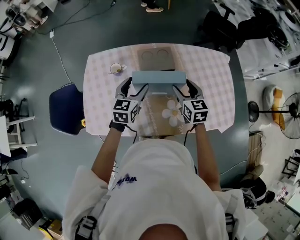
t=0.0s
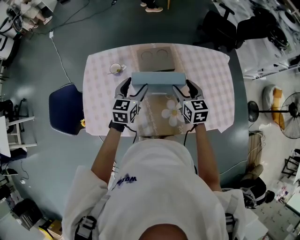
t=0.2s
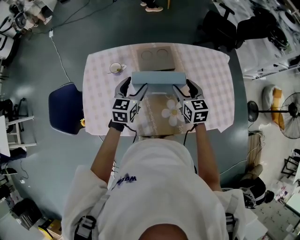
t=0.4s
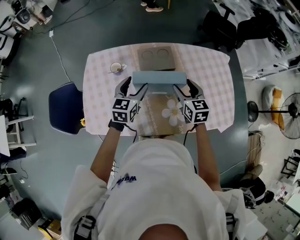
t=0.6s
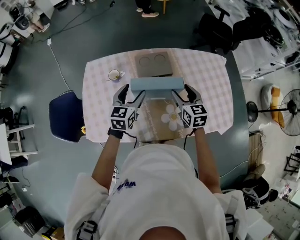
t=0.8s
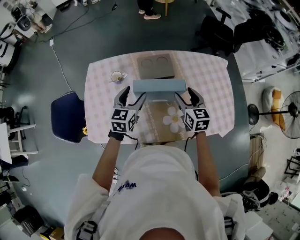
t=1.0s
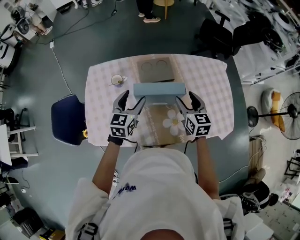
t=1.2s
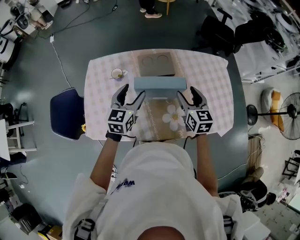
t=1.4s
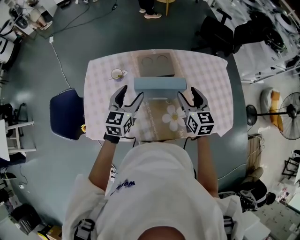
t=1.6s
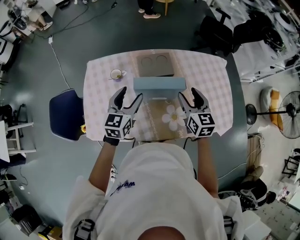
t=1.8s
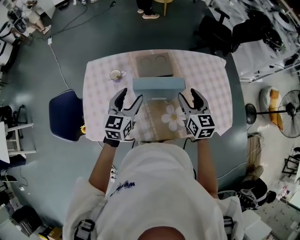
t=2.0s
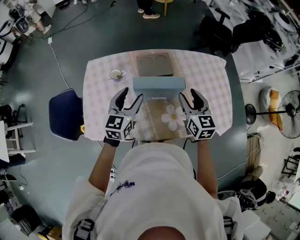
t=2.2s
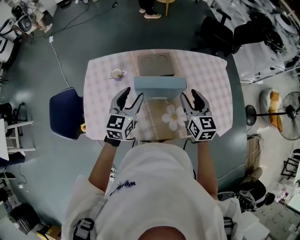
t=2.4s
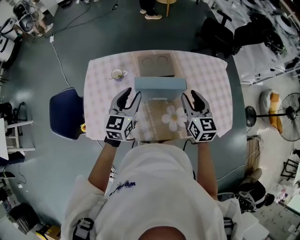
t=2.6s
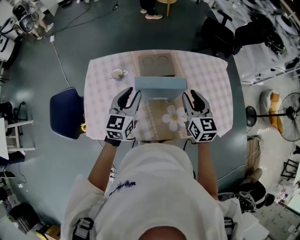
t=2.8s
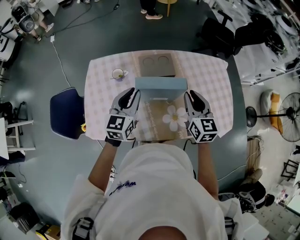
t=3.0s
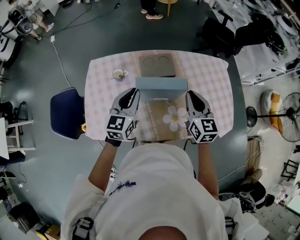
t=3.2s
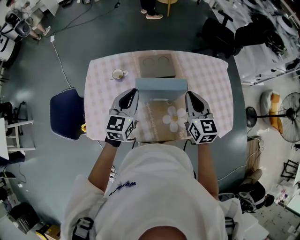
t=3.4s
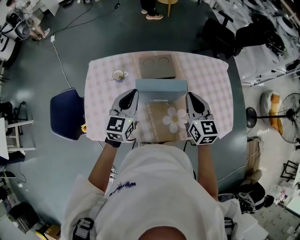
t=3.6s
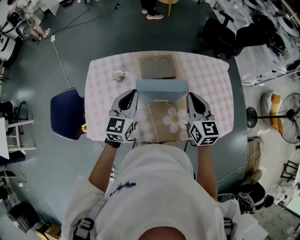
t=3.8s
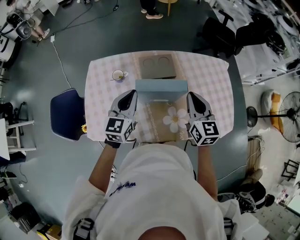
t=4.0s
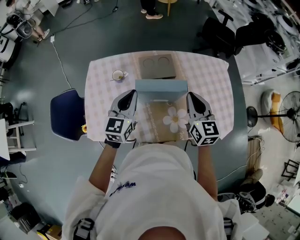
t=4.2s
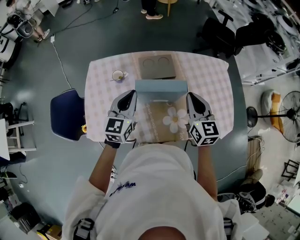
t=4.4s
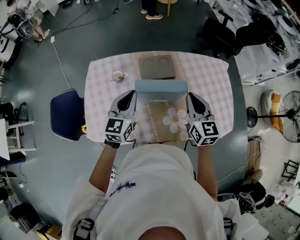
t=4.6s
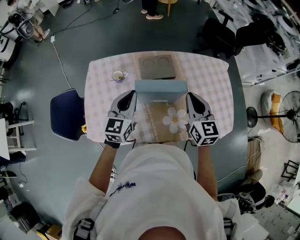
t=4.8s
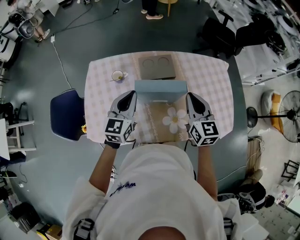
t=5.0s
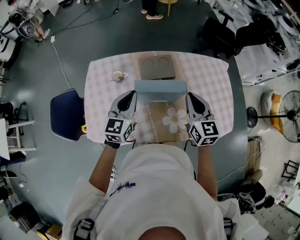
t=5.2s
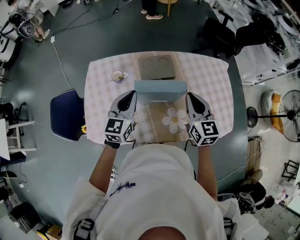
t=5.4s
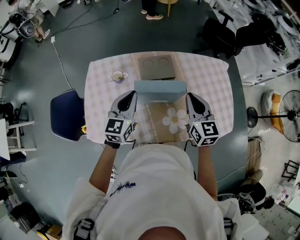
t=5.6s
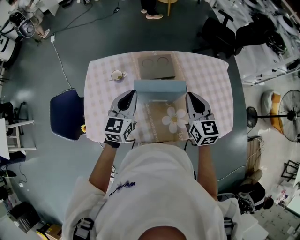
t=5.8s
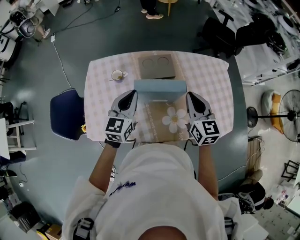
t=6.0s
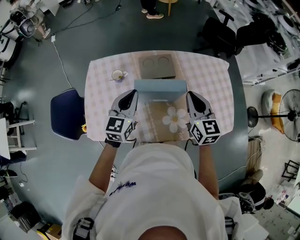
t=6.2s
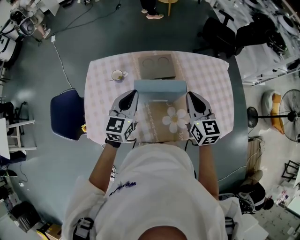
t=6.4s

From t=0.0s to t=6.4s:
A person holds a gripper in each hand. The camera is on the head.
From t=0.0s to t=1.6s: The right gripper shifts by about 5 cm; the left gripper shifts by approximately 5 cm.
From t=1.6s to t=3.2s: The left gripper closes up, while the right gripper closes up.
From t=3.2s to t=6.4s: Neither gripper changes place.

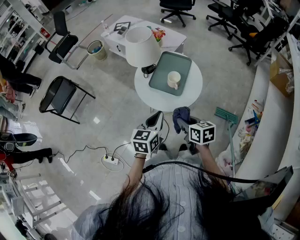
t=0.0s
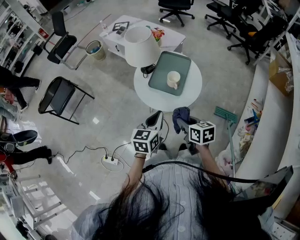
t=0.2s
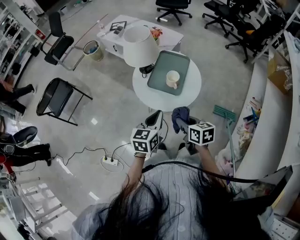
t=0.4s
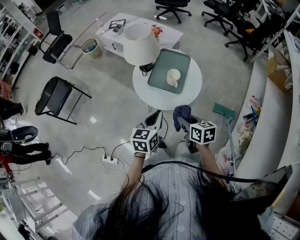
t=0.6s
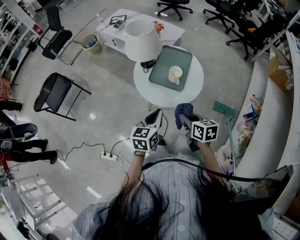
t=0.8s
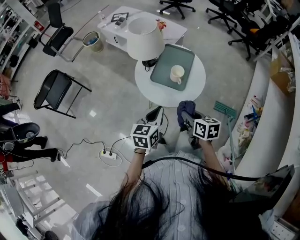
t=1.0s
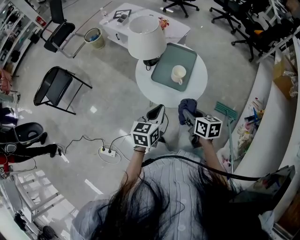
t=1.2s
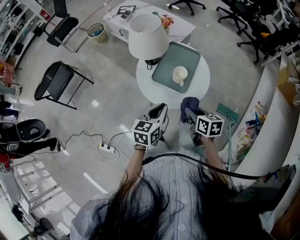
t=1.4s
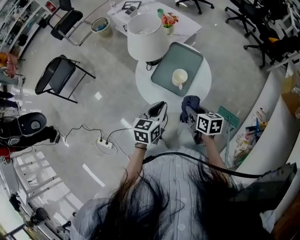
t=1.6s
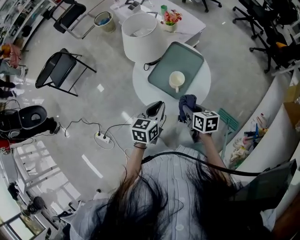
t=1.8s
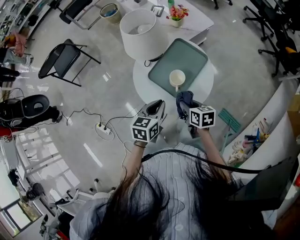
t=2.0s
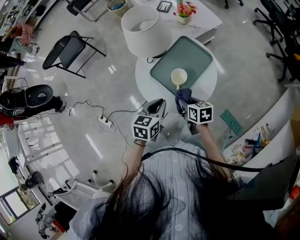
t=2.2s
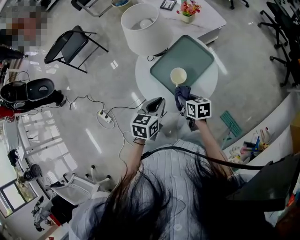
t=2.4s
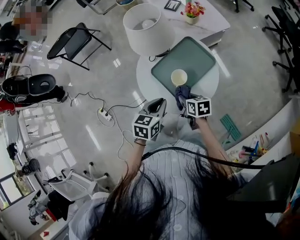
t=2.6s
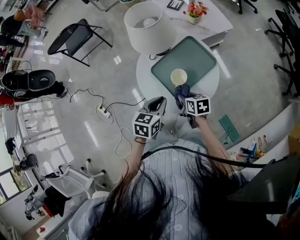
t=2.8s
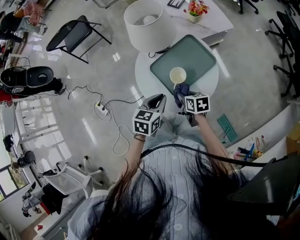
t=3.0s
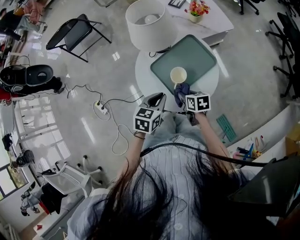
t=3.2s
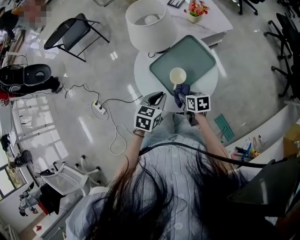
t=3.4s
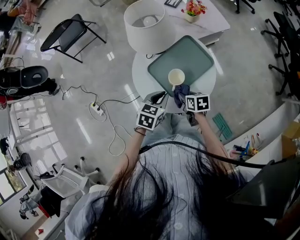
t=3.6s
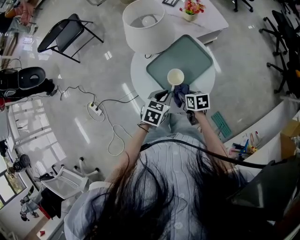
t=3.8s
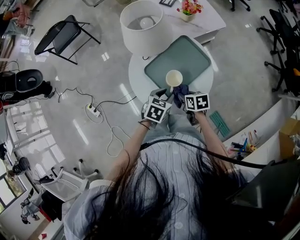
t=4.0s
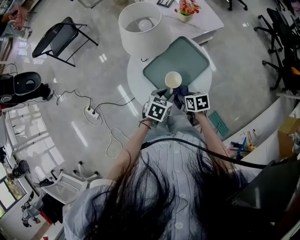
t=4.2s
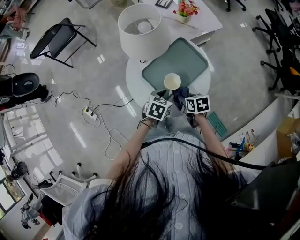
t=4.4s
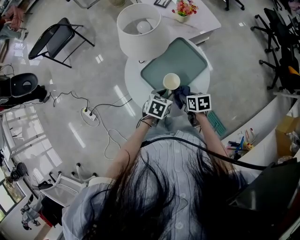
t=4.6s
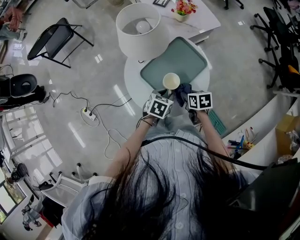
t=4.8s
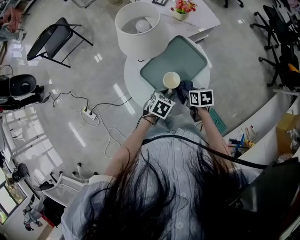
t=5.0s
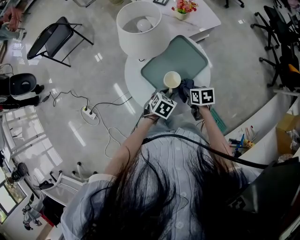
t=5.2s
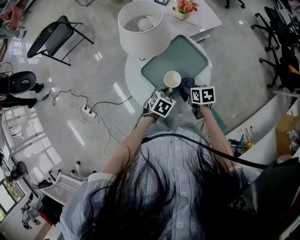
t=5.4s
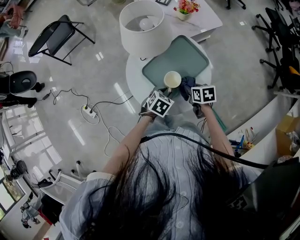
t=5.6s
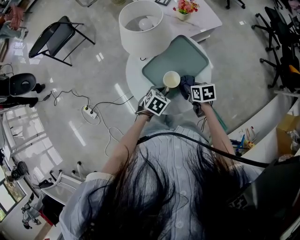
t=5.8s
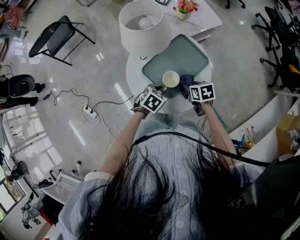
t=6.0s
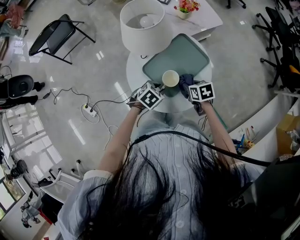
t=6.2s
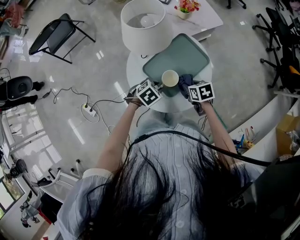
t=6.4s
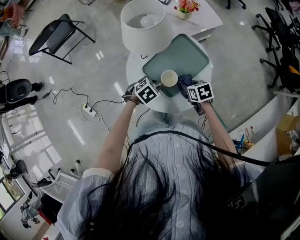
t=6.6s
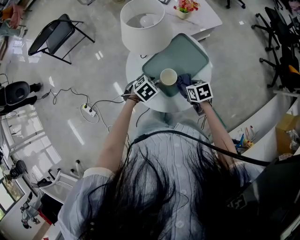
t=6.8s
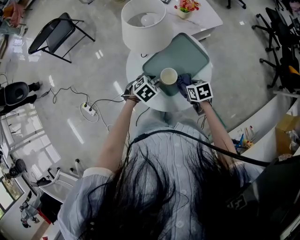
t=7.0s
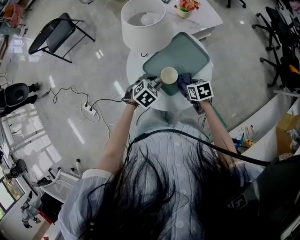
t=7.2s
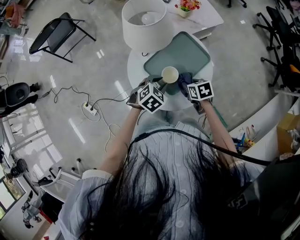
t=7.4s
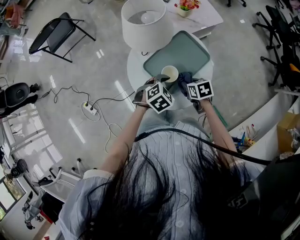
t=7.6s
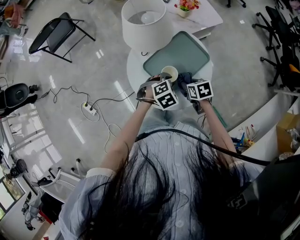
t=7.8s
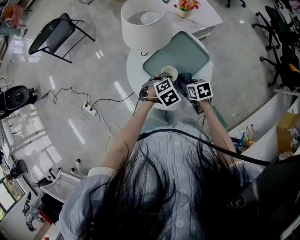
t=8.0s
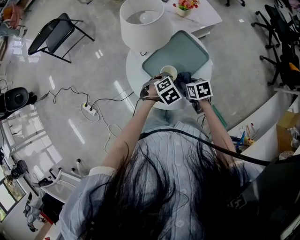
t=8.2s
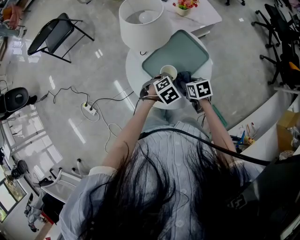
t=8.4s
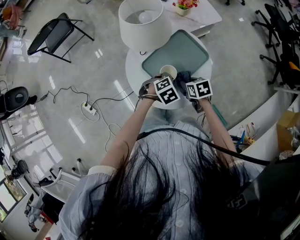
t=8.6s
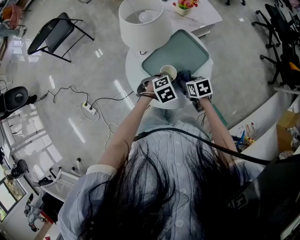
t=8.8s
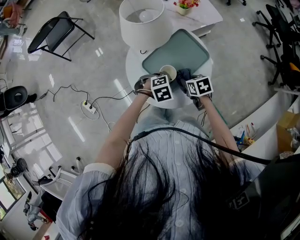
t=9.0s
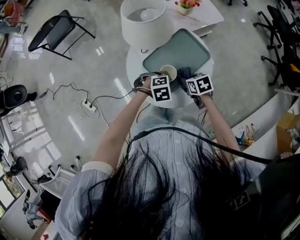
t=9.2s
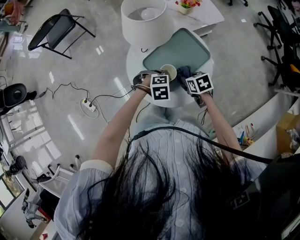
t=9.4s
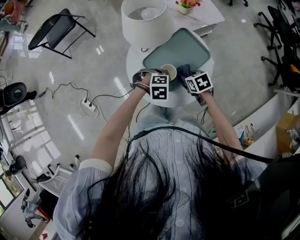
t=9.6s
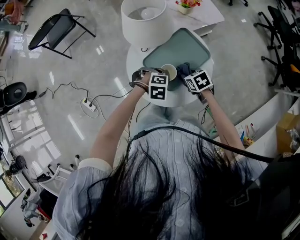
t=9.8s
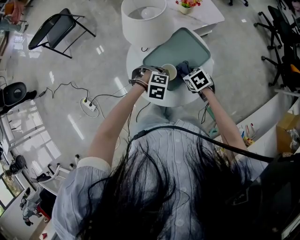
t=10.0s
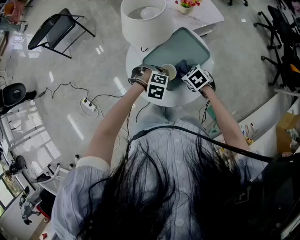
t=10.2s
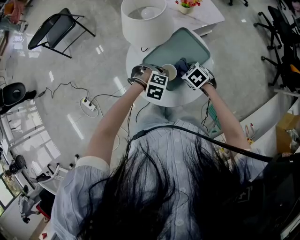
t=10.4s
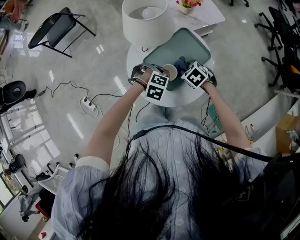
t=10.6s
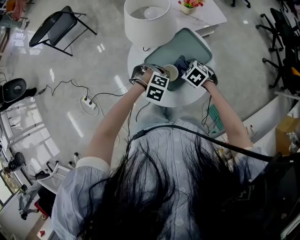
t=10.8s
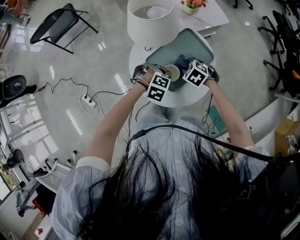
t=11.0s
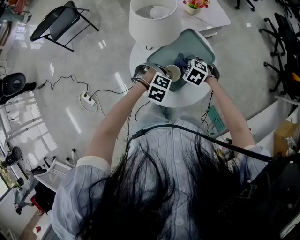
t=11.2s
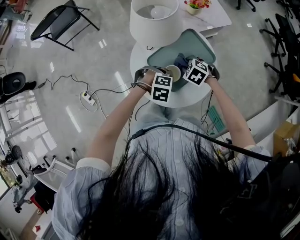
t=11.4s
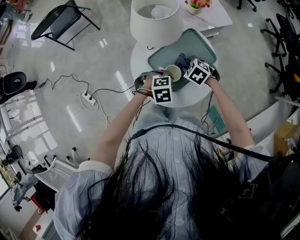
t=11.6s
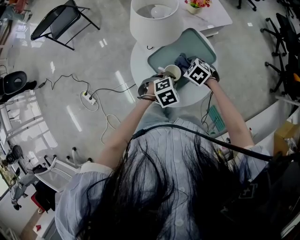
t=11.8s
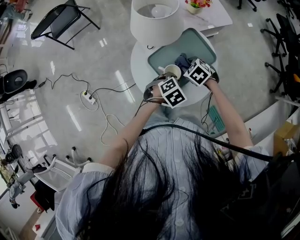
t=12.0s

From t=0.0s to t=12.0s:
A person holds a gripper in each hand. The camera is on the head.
From t=0.0s to t=1.6s: The left gripper goes some 10 cm forward; the right gripper heads forward and to the right, covering some 10 cm.
From t=1.6s to t=3.0s: The left gripper changes place by about 10 cm, and changes its angle by about 20 degrees. The right gripper moves downward, roughly 10 cm, and swivels approximately 30 degrees.
From t=3.0s to t=4.4s: The left gripper shifts approximately 10 cm downward and to the right, and opens up.
From t=4.4s to t=6.0s: The right gripper changes place by some 5 cm.
From t=6.0s to t=7.6s: The left gripper travels upward by roughly 5 cm, and turns by some 20 degrees.
From t=7.6s to t=9.0s: The left gripper turns by some 20 degrees.
From t=9.0s to t=10.4s: The right gripper swivels approximately 30 degrees; the left gripper turns by approximately 30 degrees.
From t=10.4s to t=12.0s: The left gripper twists roughly 50 degrees counterclockwise, seen from behind.

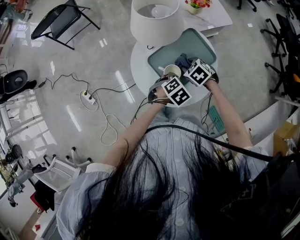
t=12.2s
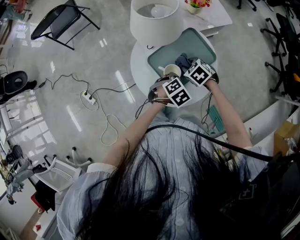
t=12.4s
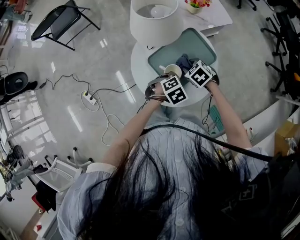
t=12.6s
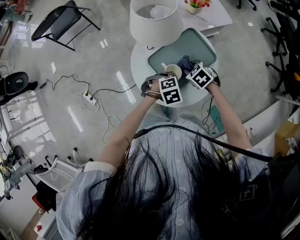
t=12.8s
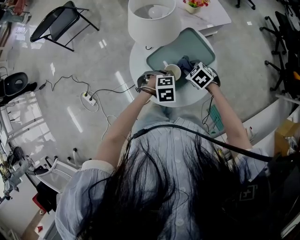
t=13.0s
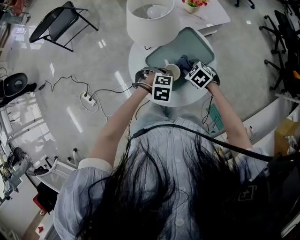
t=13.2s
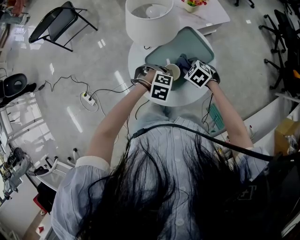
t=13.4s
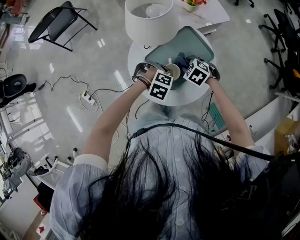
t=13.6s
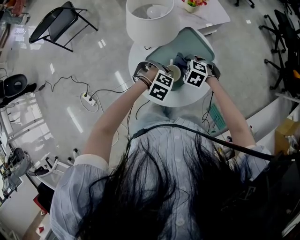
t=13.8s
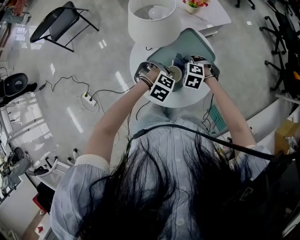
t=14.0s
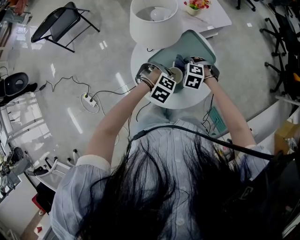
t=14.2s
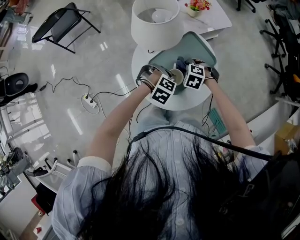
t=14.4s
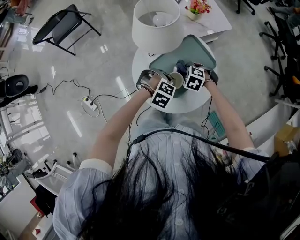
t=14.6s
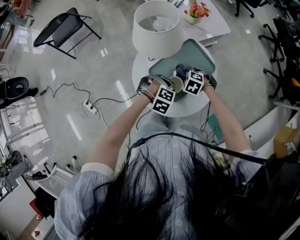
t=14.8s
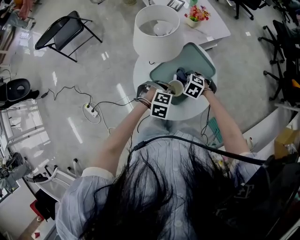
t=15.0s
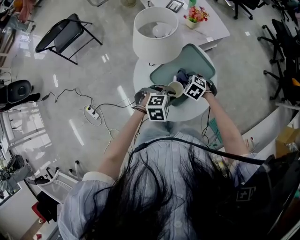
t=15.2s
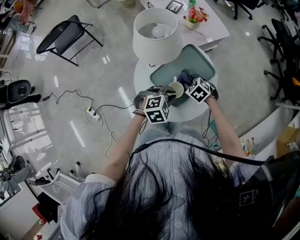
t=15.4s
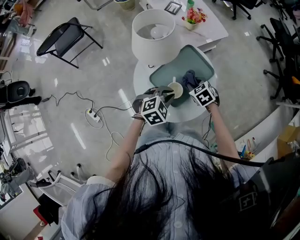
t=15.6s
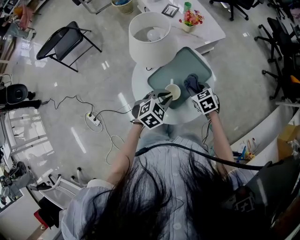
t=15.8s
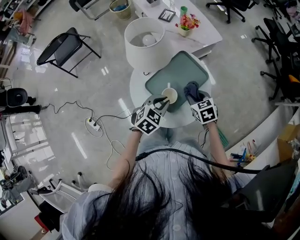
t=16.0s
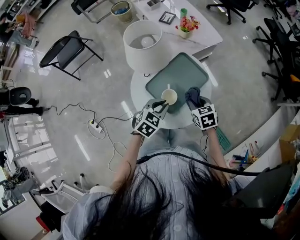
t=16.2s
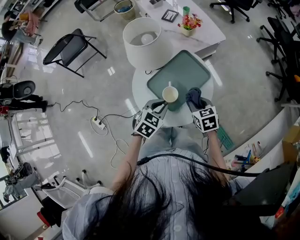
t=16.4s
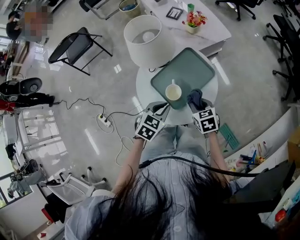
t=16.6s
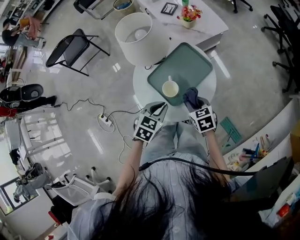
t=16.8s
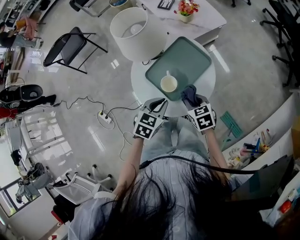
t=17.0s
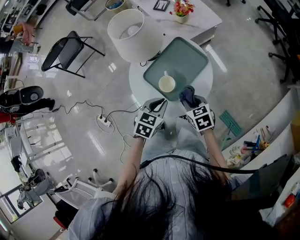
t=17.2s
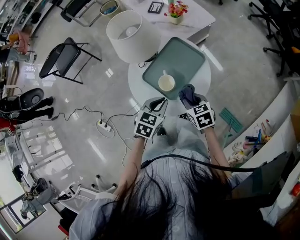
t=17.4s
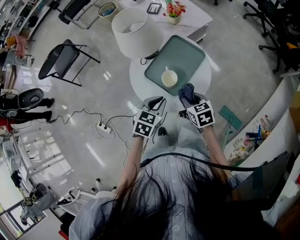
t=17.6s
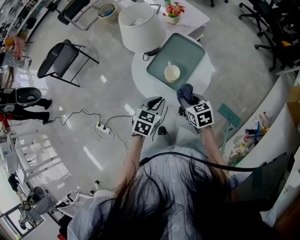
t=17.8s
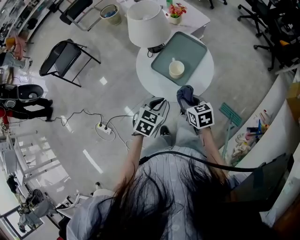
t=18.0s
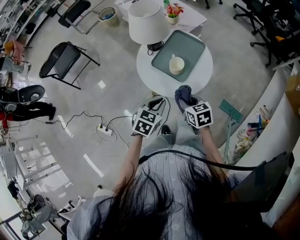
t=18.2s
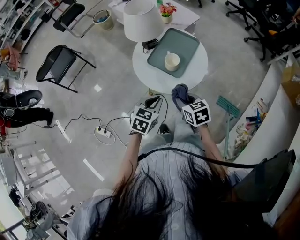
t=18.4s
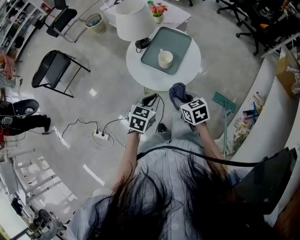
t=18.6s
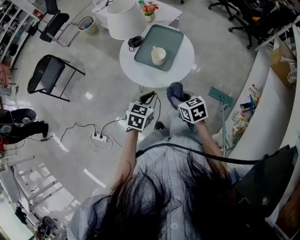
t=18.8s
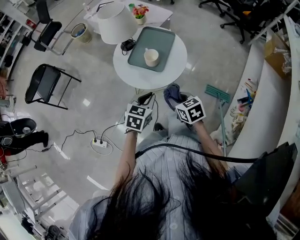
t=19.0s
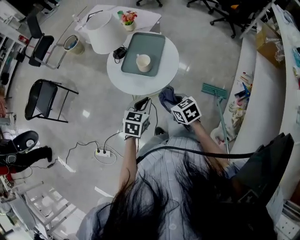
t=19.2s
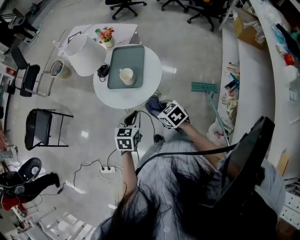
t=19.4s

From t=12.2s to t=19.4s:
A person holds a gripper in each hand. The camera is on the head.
From t=12.2s to t=13.6s: The left gripper rolls clockwise, seen from behind, by some 60 degrees.
From t=15.0s to t=16.6s: The right gripper moves about 15 cm, and rotates around the line of its fingers by about 50 degrees, clockwise from behind; the left gripper shifts about 10 cm upward, and twists about 60 degrees counterclockwise, seen from behind.
From t=16.6s to t=18.0s: Both grippers travel together backward and to the left, approximately 15 cm.
From t=18.0s to t=19.4s: The right gripper shifts roughly 10 cm backward. The left gripper is displaced backward by some 5 cm.
